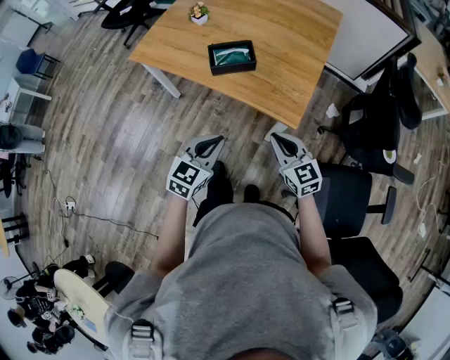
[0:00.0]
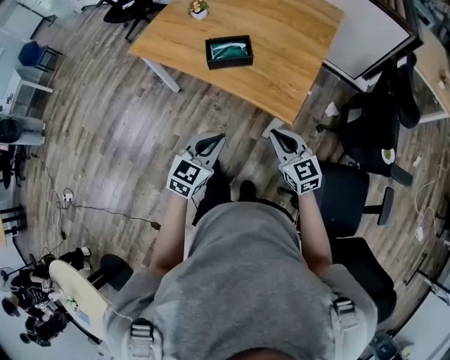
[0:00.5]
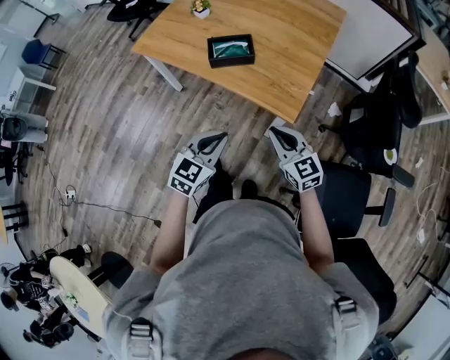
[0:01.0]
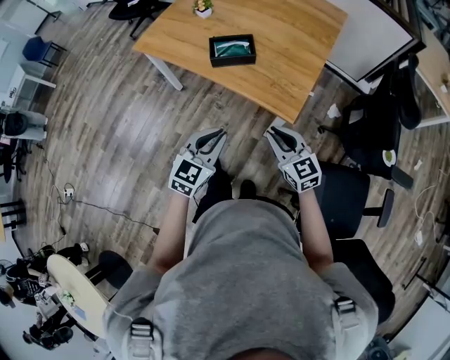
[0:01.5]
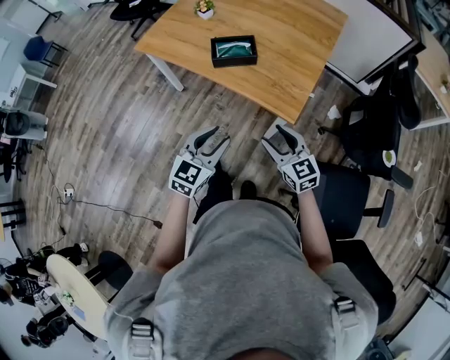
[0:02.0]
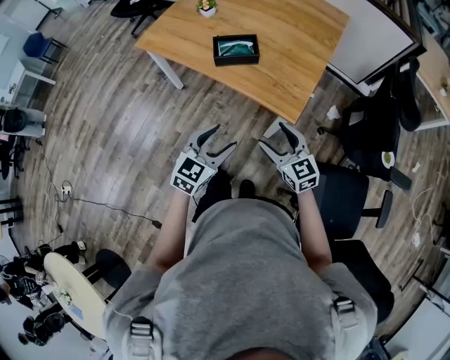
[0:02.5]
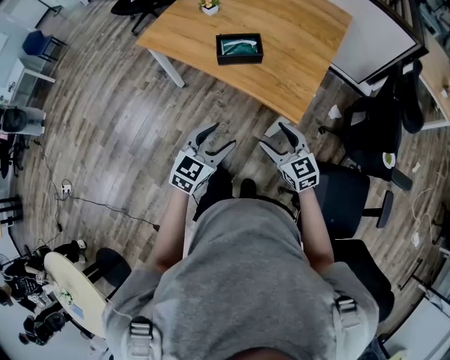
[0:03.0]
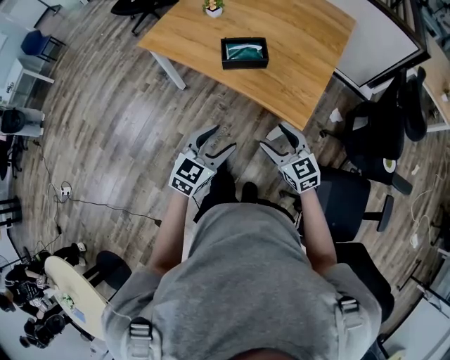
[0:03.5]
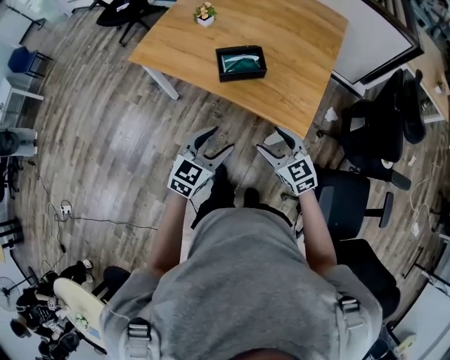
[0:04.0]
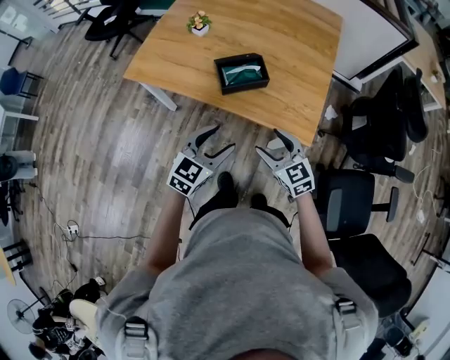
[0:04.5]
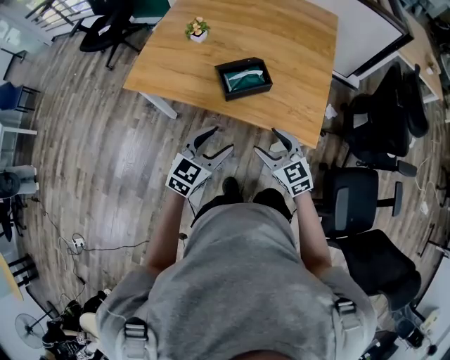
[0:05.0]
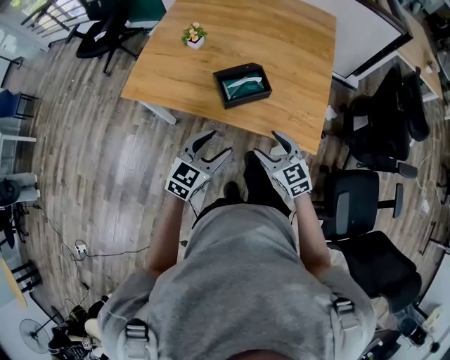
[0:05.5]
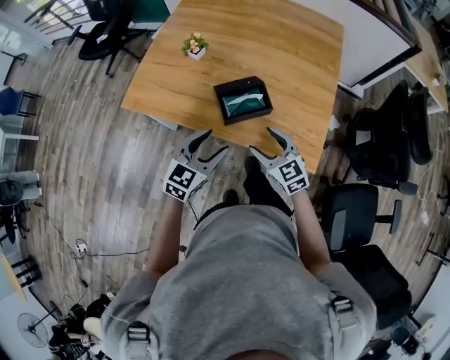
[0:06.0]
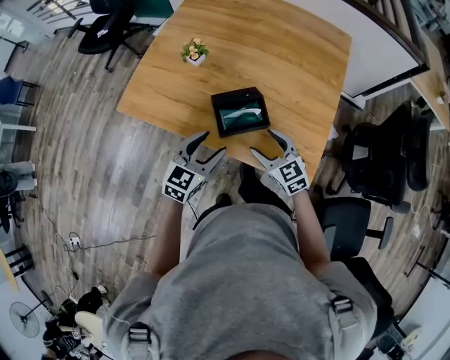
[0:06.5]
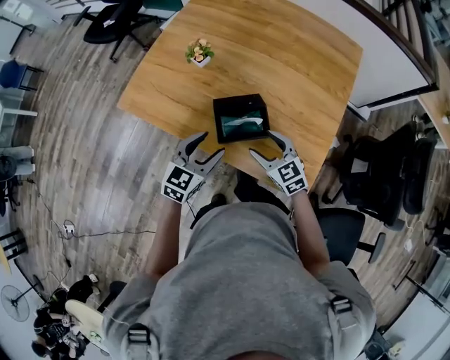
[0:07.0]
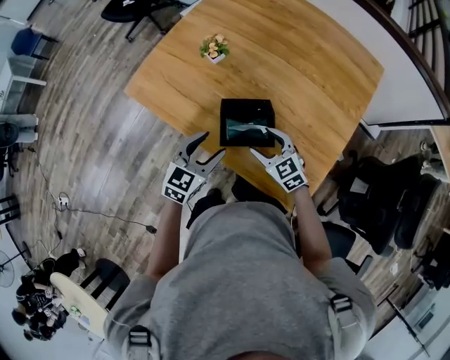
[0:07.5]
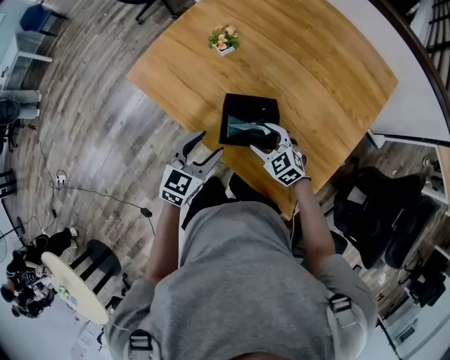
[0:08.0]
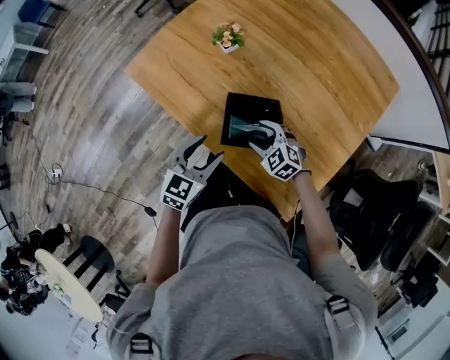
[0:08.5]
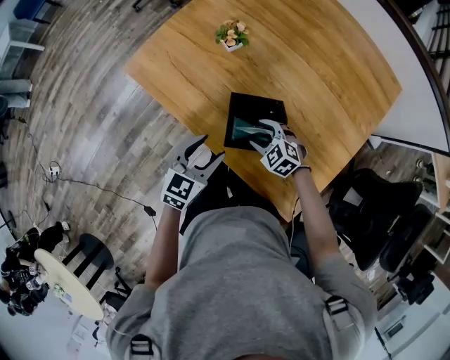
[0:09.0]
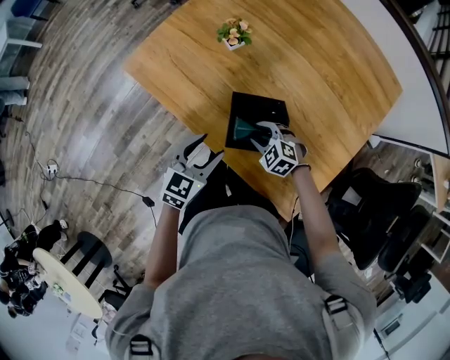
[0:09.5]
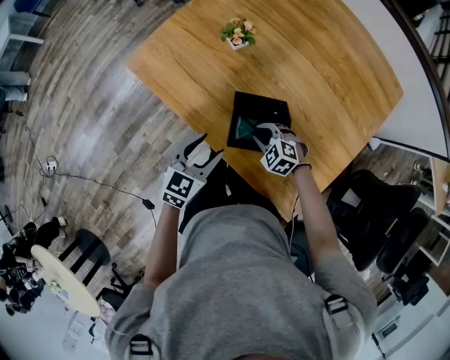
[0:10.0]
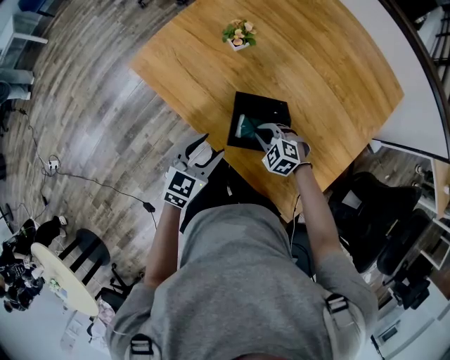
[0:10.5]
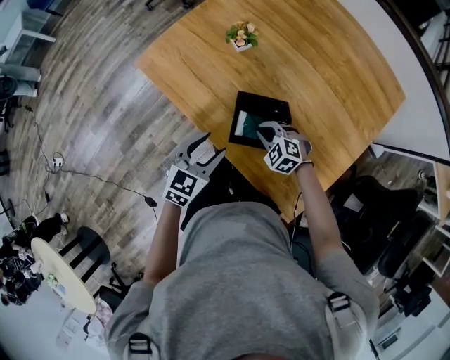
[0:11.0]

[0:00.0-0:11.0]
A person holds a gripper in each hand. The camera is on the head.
0:00.0 to 0:02.0: The left gripper opens up. Meanwhile the right gripper opens up.
0:02.0 to 0:03.5: The left gripper opens its fingers. The right gripper moves to the left, roughly 5 cm.
0:03.5 to 0:05.5: The two grippers go some 20 cm forward and to the left.
0:05.5 to 0:07.5: The grippers both shift forward by some 20 cm. The left gripper changes its angle by some 20 degrees, while the right gripper turns by about 30 degrees.
0:07.5 to 0:09.0: The right gripper is displaced downward by about 10 cm, and rotates approximately 30 degrees.
0:09.0 to 0:11.0: The right gripper closes up.

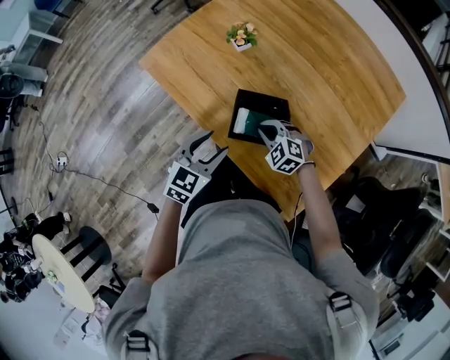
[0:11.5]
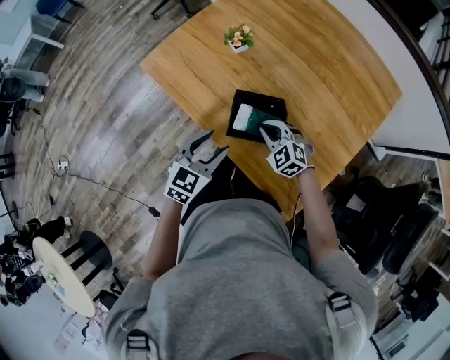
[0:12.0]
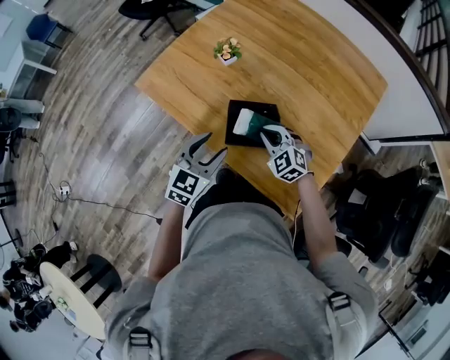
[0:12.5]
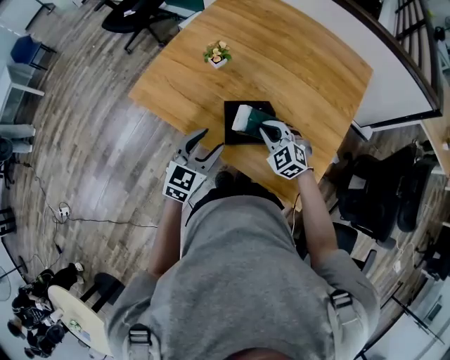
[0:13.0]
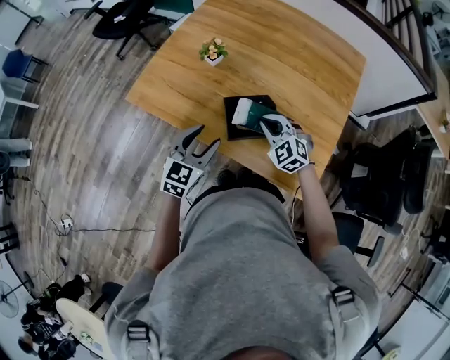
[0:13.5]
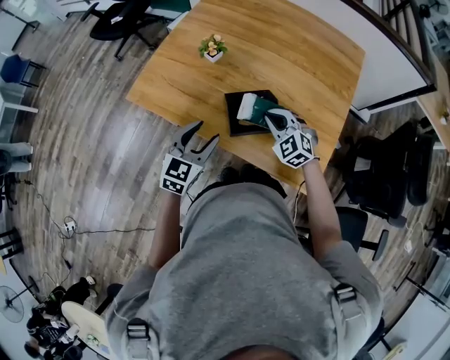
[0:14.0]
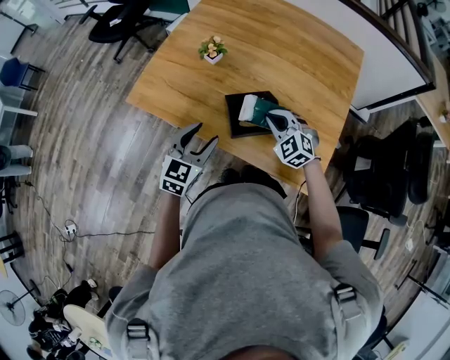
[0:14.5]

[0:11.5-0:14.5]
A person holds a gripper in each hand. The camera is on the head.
0:11.5 to 0:13.0: The left gripper moves upward, approximately 5 cm, while the right gripper travels upward by roughly 10 cm, and rotates about 20 degrees.
0:13.0 to 0:14.5: The grippers make only small movements.

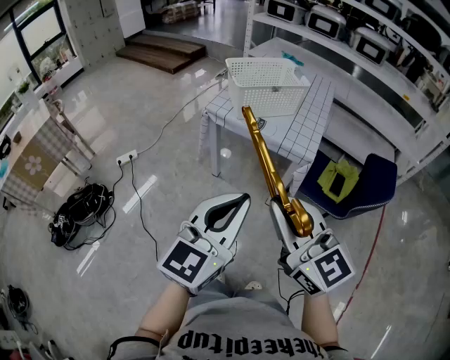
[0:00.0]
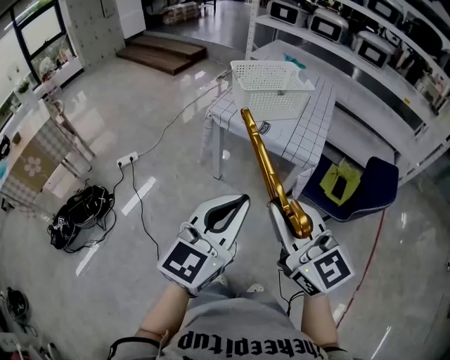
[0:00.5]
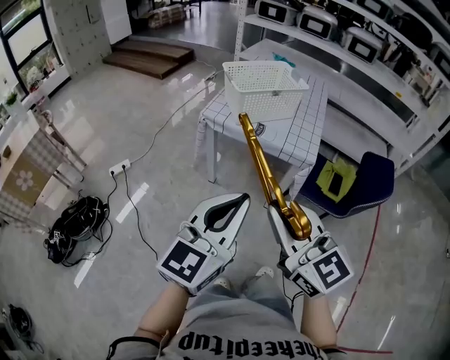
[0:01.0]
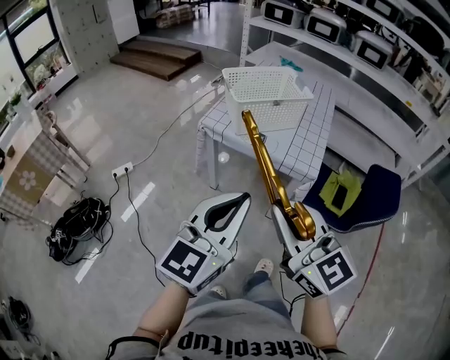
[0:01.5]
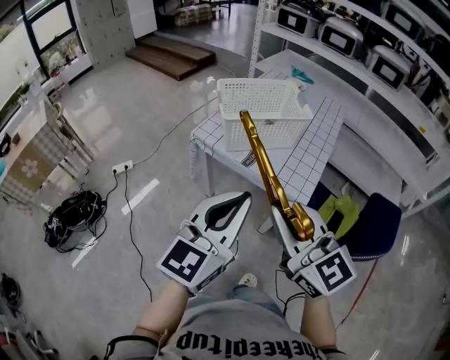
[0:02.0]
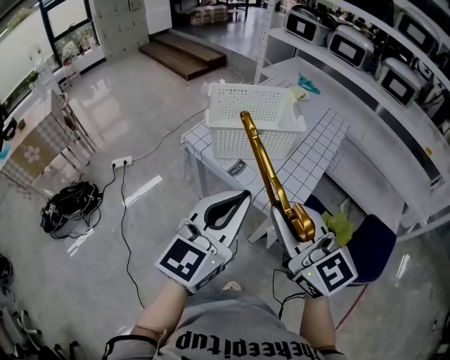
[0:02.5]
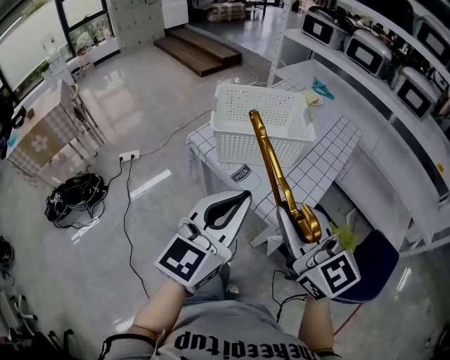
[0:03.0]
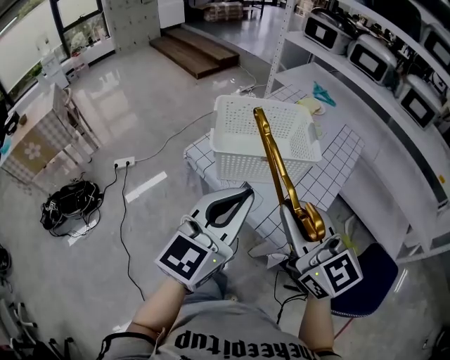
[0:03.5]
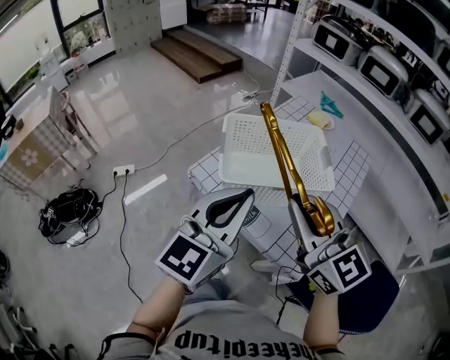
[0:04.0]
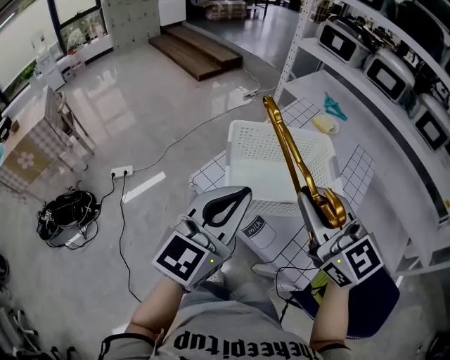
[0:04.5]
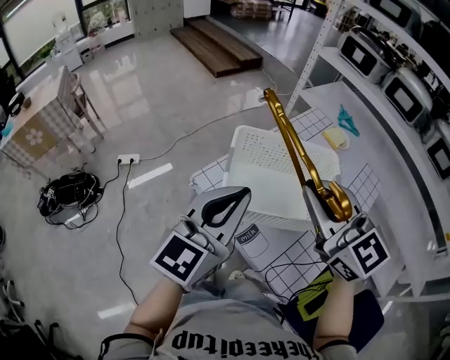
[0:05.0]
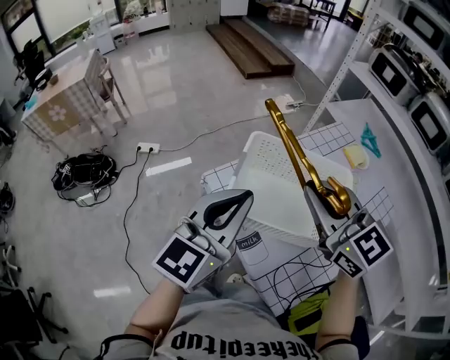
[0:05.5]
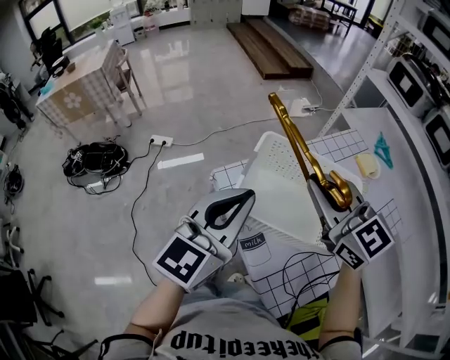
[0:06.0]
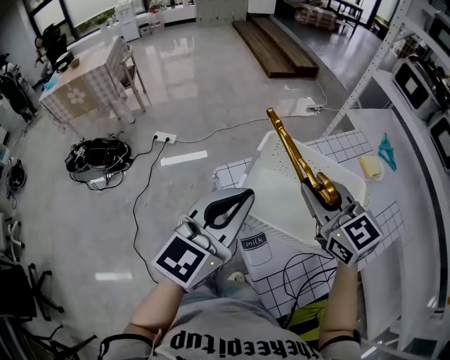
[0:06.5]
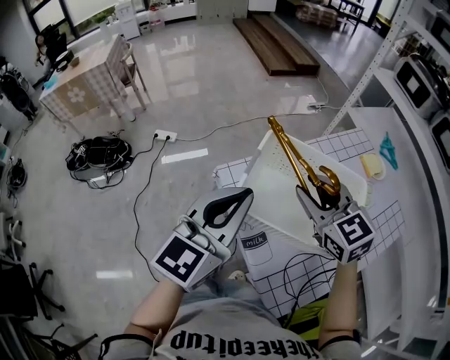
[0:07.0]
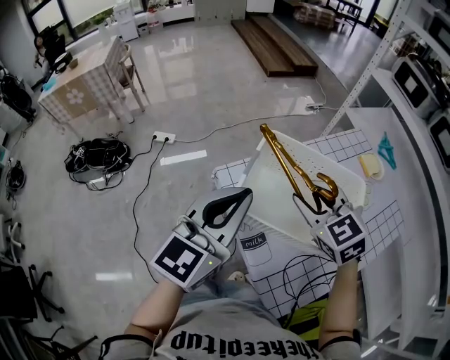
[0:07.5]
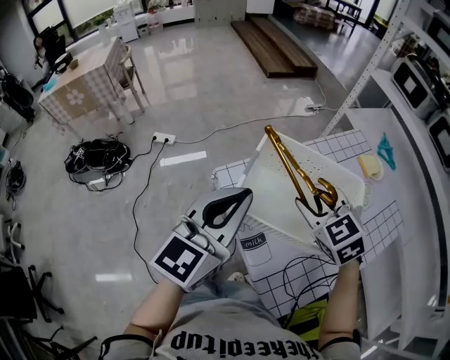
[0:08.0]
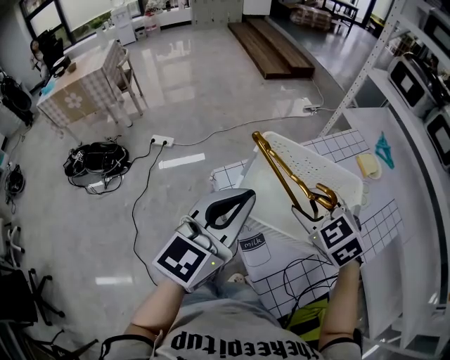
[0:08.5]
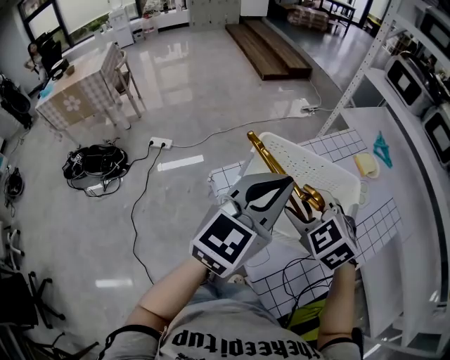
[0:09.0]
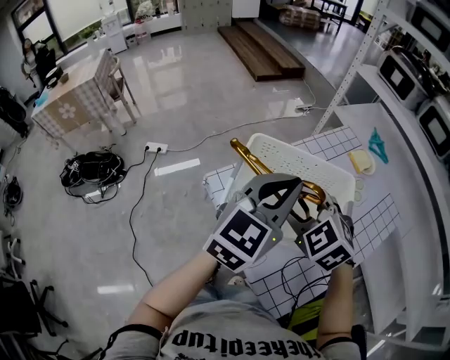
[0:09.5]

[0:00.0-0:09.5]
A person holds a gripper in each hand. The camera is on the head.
0:00.0 to 0:02.0: The left gripper shifts some 20 cm forward, while the right gripper is displaced forward and to the right by roughly 20 cm.
0:02.0 to 0:04.0: The two grippers go roughly 25 cm forward.
0:04.0 to 0:05.5: The left gripper heads forward, covering roughly 10 cm. Meanwhile the right gripper moves forward, approximately 15 cm, and turns by some 20 degrees.
0:05.5 to 0:07.5: The right gripper travels downward by about 10 cm, turns by about 20 degrees, and opens up.
0:07.5 to 0:09.5: The left gripper is displaced to the right by approximately 10 cm.

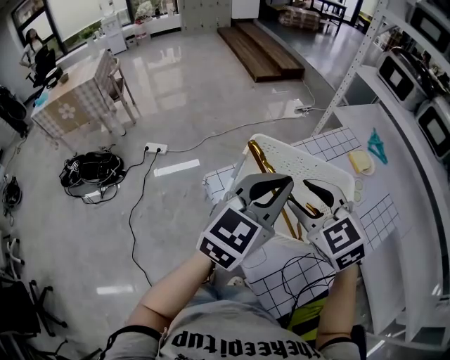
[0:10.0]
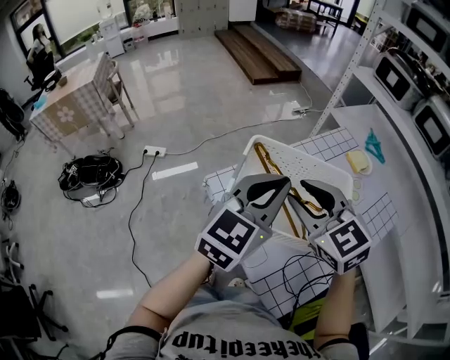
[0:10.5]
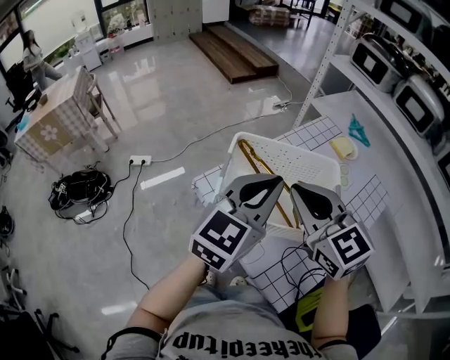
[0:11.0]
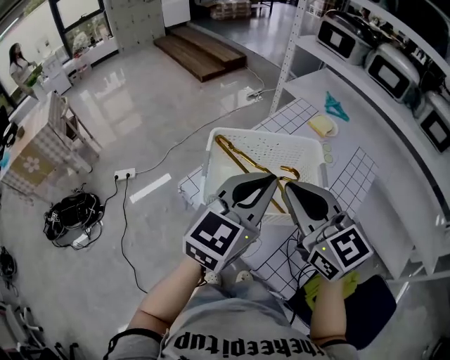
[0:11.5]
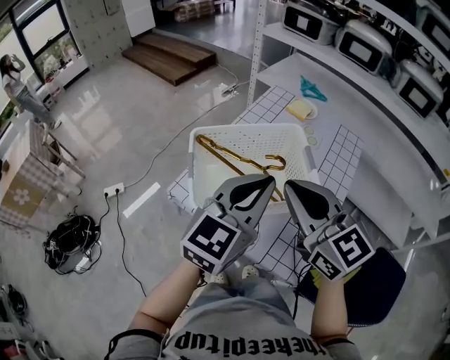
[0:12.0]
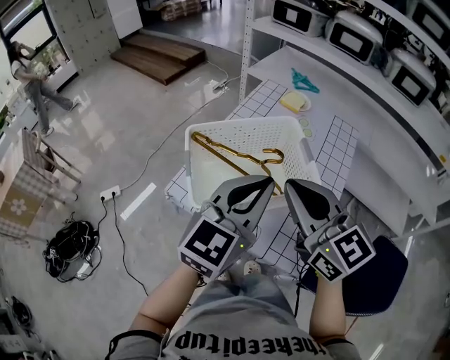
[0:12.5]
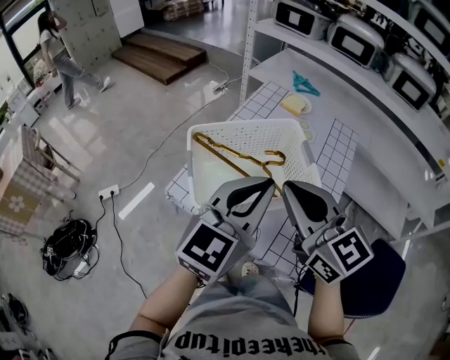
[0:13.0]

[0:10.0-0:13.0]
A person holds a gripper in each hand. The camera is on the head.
0:10.0 to 0:11.5: The left gripper shifts by about 5 cm, while the right gripper moves upward and backward, approximately 10 cm, rotates approximately 30 degrees, and closes up.
0:11.5 to 0:13.0: There are only small adjustments of the grippers.
